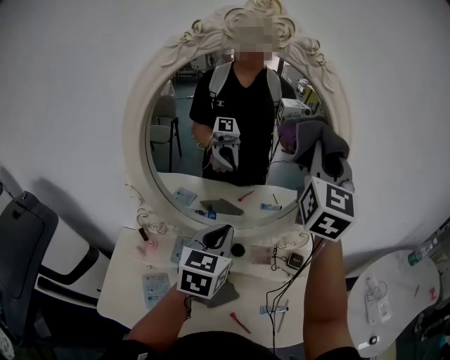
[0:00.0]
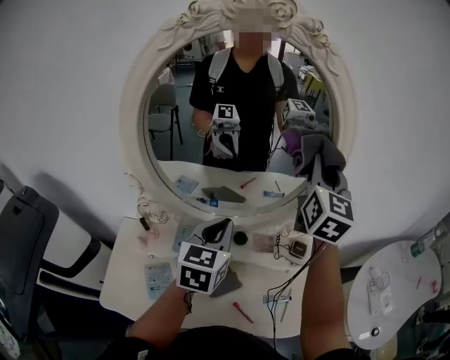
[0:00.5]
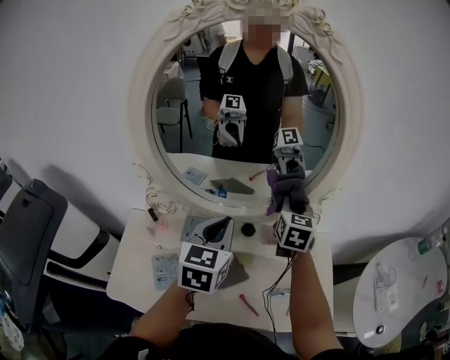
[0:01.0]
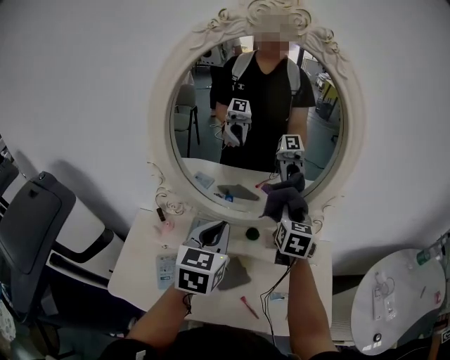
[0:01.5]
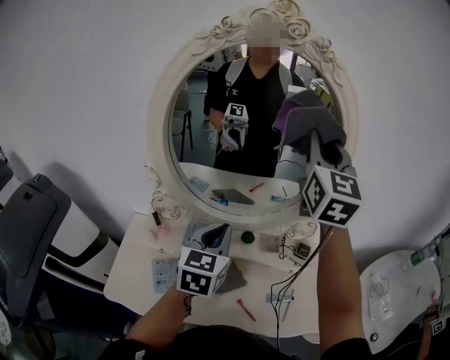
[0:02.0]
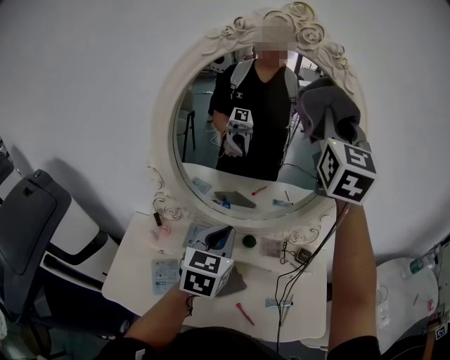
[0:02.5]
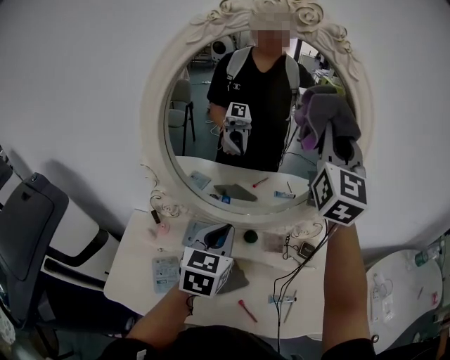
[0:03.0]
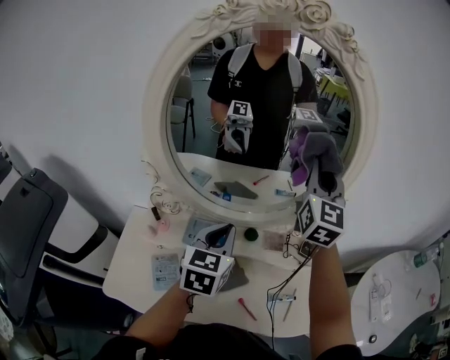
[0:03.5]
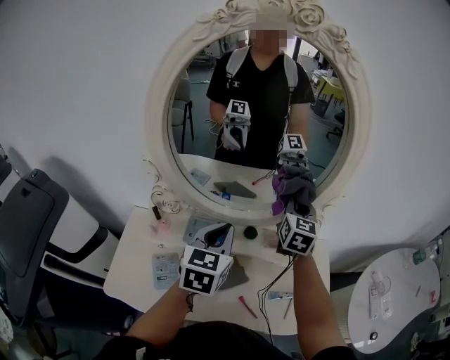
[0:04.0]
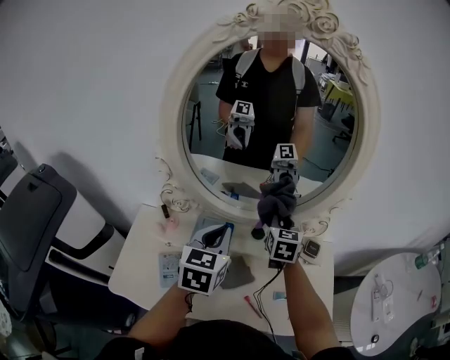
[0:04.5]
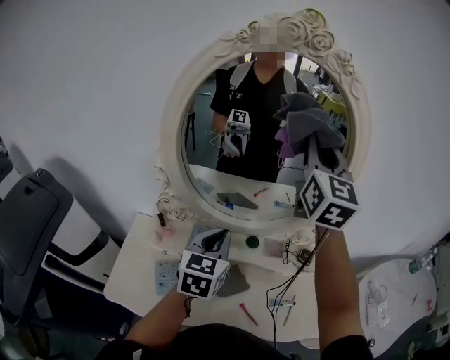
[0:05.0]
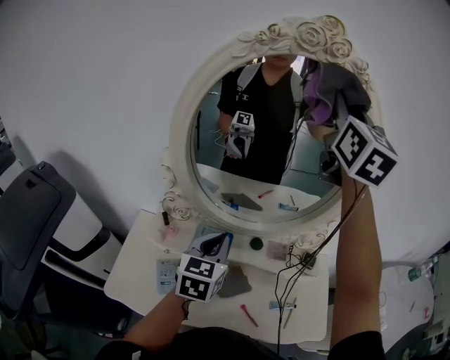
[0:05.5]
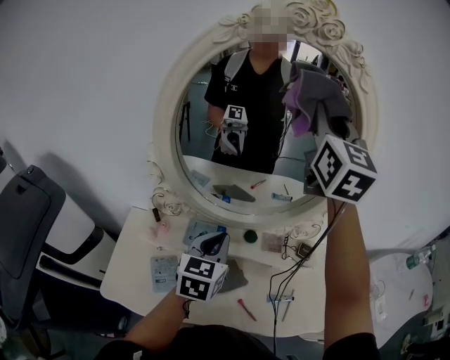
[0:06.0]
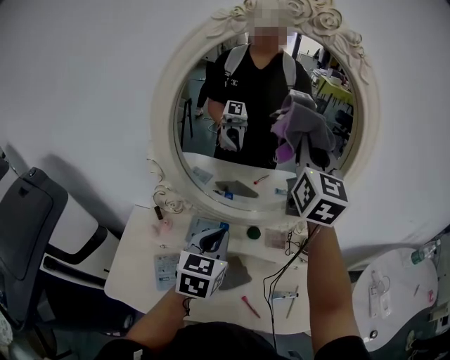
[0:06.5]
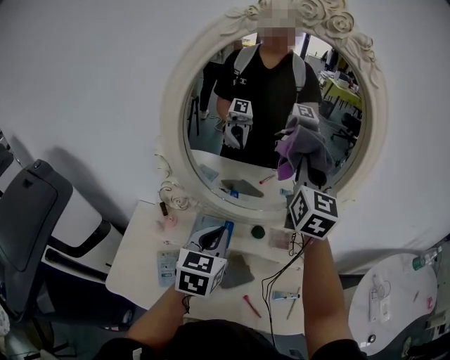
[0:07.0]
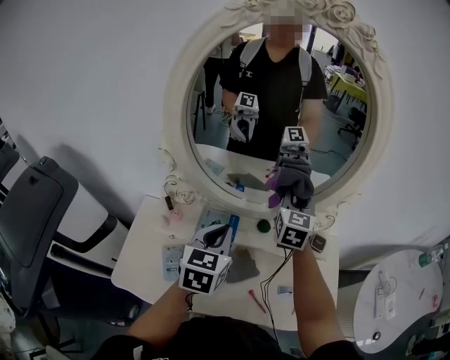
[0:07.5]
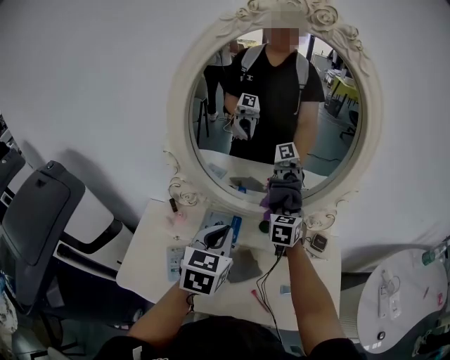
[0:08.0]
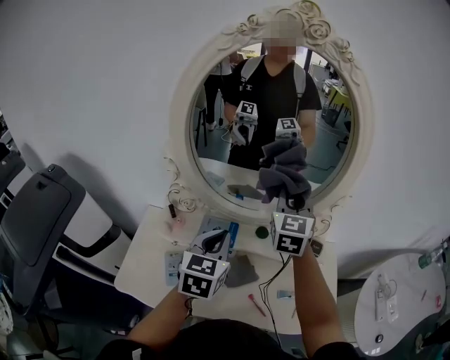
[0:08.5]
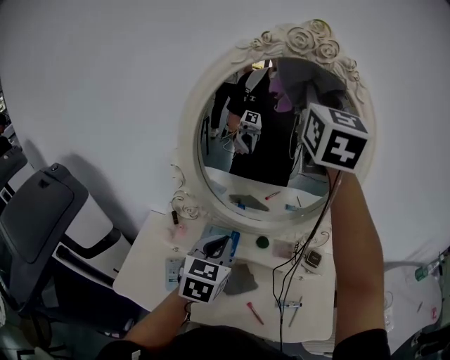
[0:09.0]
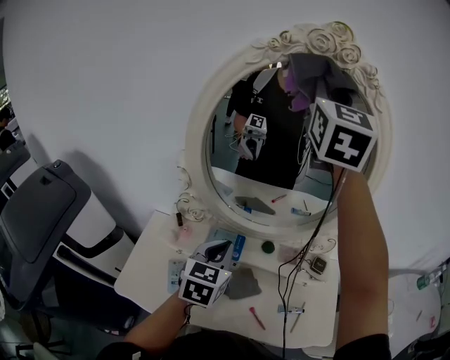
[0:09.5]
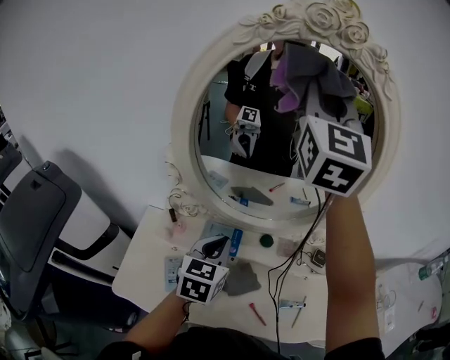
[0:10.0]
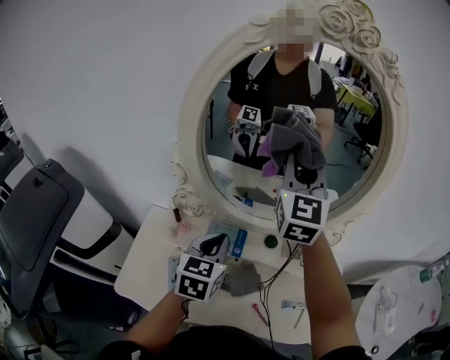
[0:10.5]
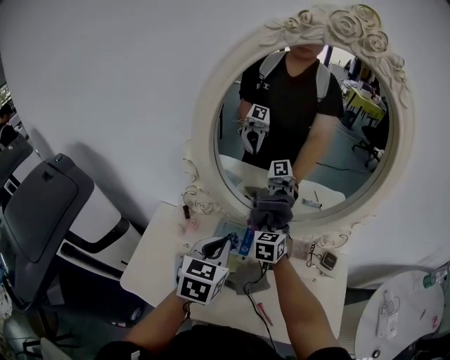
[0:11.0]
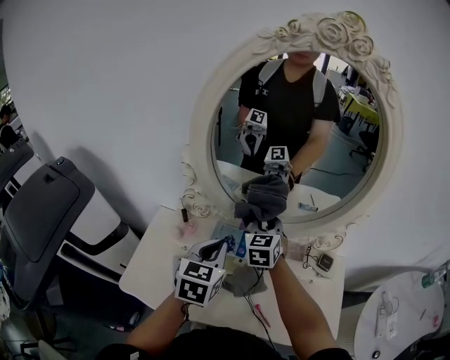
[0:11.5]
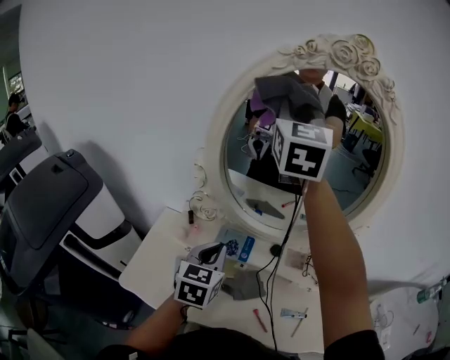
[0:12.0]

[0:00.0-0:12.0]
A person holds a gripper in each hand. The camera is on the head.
0:00.0 to 0:02.0: The left gripper shifts approximately 5 cm backward. The right gripper reaches approximately 30 cm downward, then returns.
0:02.0 to 0:04.0: The right gripper heads downward, covering some 25 cm, and turns by roughly 20 degrees.
0:04.0 to 0:06.0: The right gripper moves up and down over about 50 cm, changing direction 2 times, and turns by about 30 degrees.
0:06.0 to 0:08.0: The right gripper shifts approximately 40 cm downward, and tilts its fingers approximately 40 degrees downward.
0:08.0 to 0:10.0: The right gripper is displaced upward by some 50 cm, and angles its fingers upward, by approximately 50 degrees.
0:10.0 to 0:12.0: The left gripper moves some 5 cm, while the right gripper shifts about 10 cm to the left, and reaches approximately 50 cm downward, then returns.

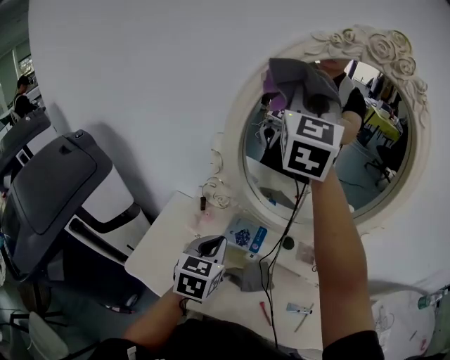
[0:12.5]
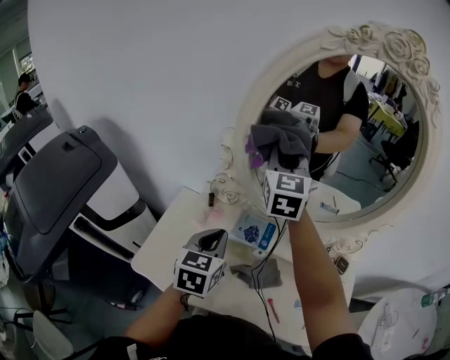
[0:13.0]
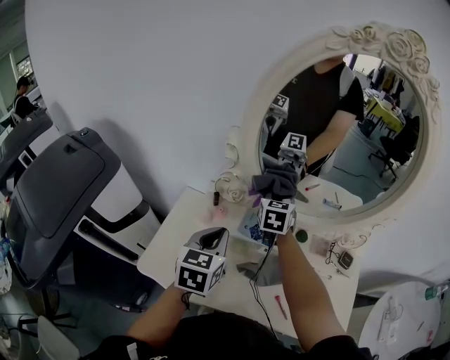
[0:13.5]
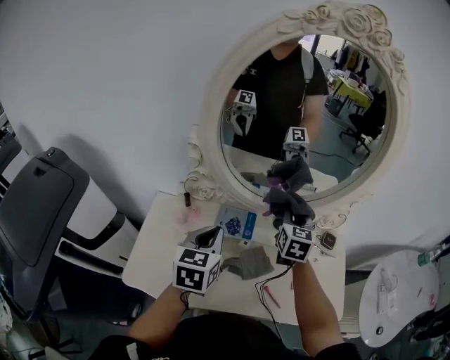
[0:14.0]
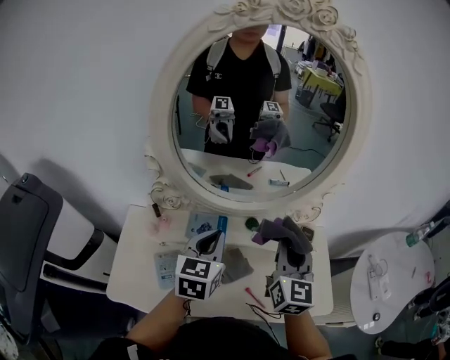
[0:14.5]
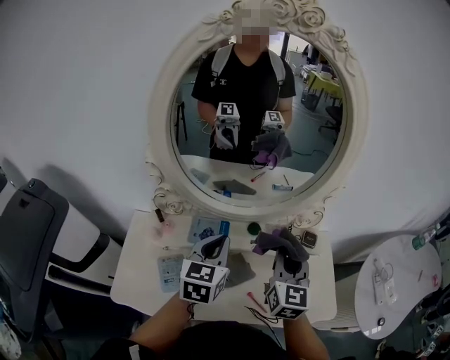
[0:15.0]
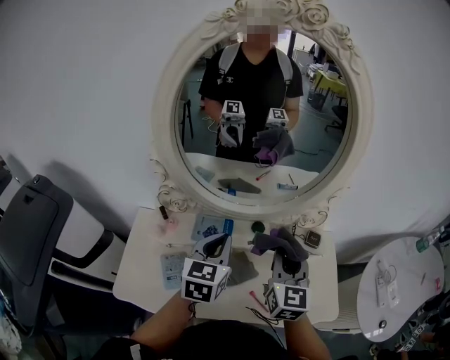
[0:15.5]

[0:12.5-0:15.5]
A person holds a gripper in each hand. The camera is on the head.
0:12.5 to 0:14.0: The right gripper heads downward and to the right, covering some 40 cm, and tilts its fingers roughly 40 degrees downward.
0:14.0 to 0:15.5: The left gripper is displaced to the right by approximately 10 cm. Meanwhile the right gripper moves backward, to the right and upward, some 15 cm.

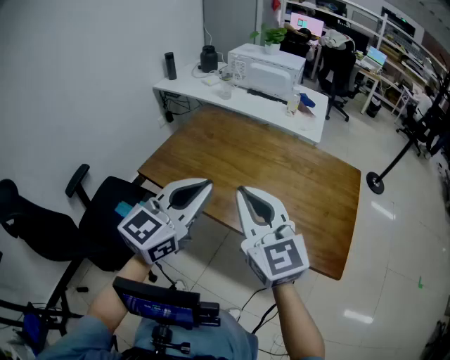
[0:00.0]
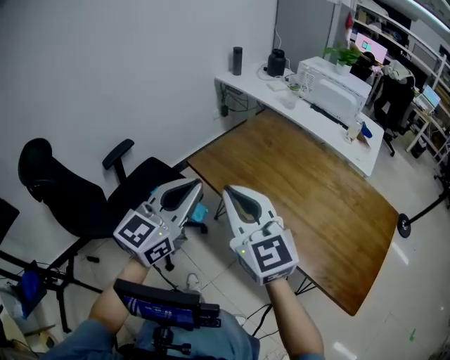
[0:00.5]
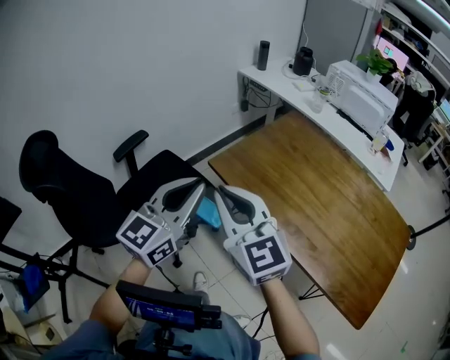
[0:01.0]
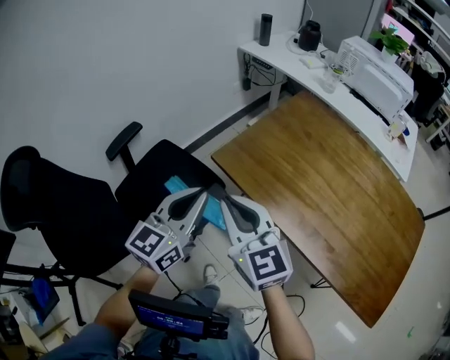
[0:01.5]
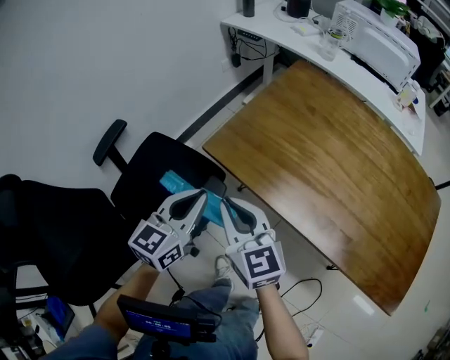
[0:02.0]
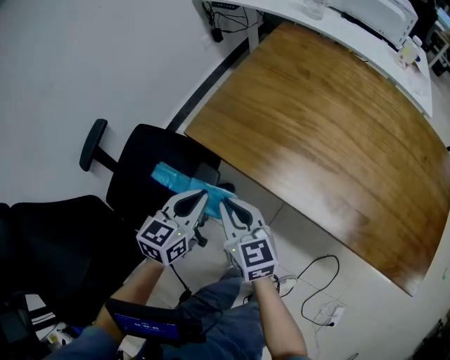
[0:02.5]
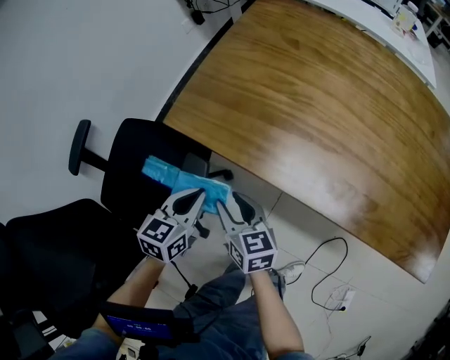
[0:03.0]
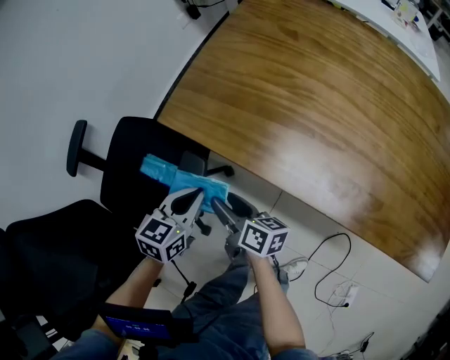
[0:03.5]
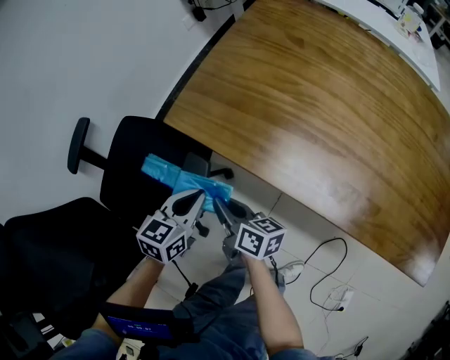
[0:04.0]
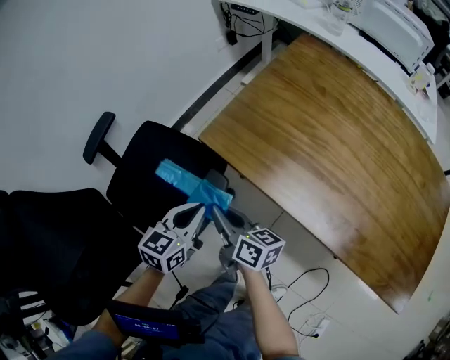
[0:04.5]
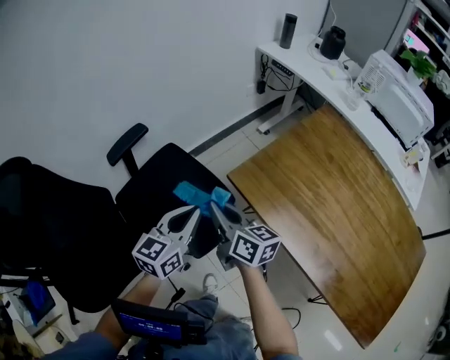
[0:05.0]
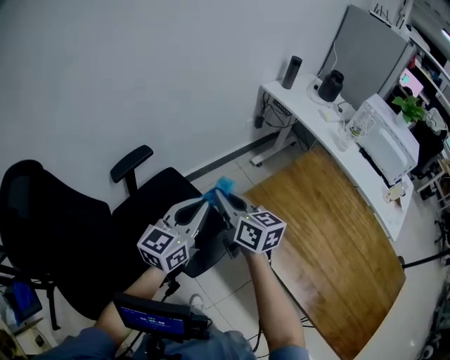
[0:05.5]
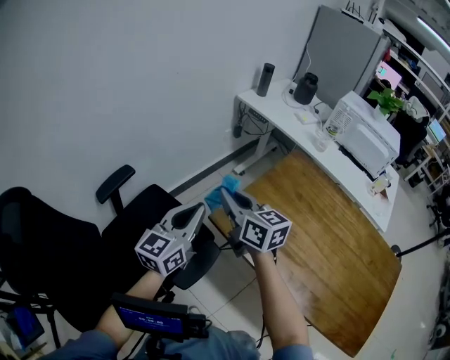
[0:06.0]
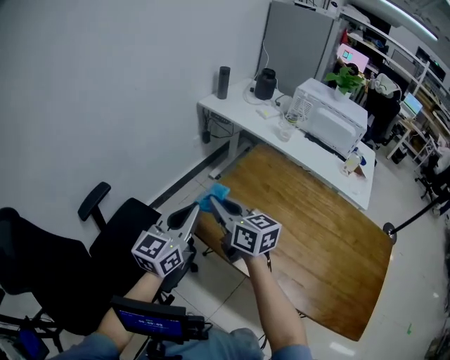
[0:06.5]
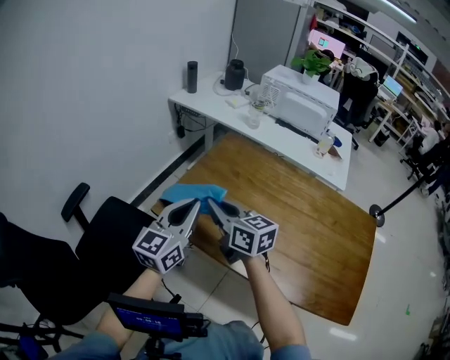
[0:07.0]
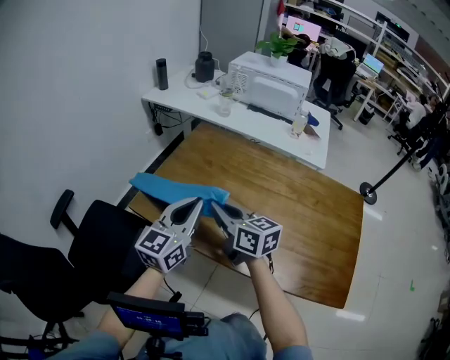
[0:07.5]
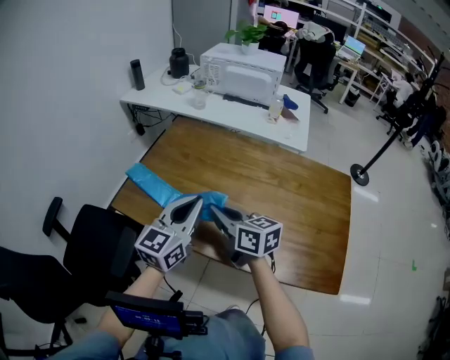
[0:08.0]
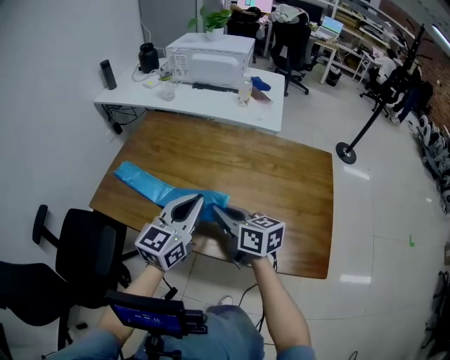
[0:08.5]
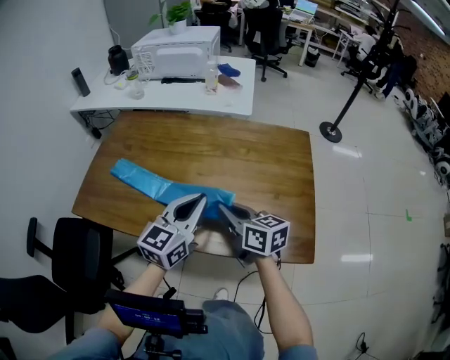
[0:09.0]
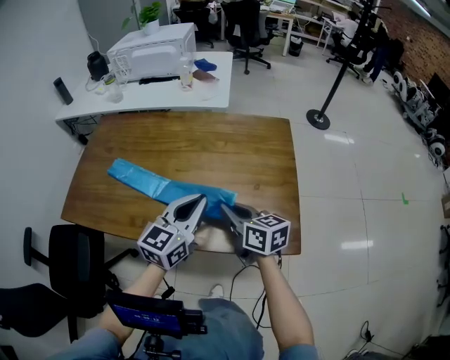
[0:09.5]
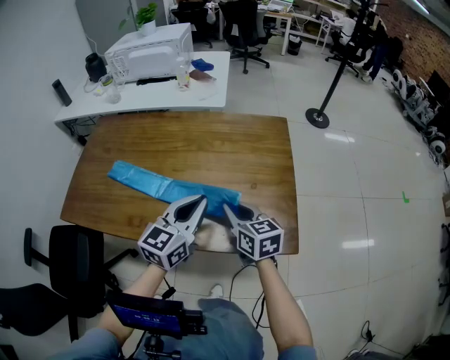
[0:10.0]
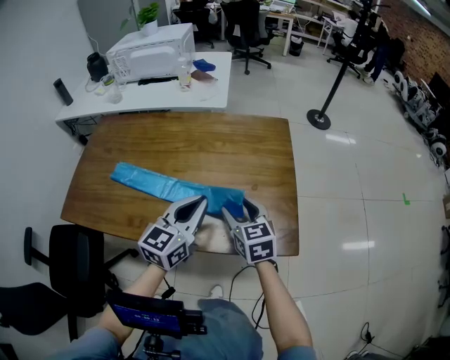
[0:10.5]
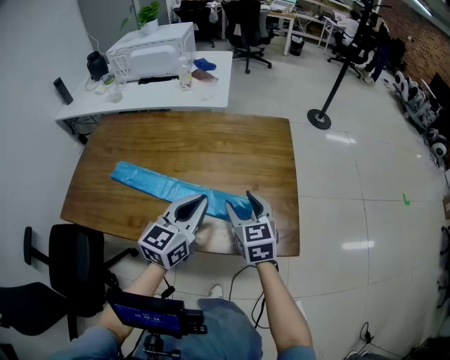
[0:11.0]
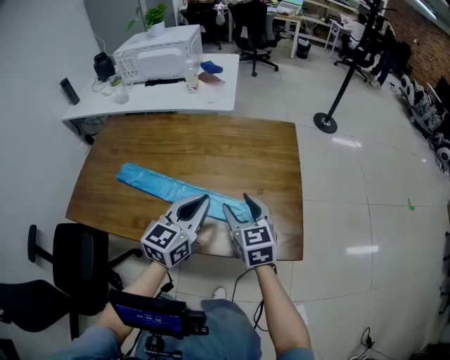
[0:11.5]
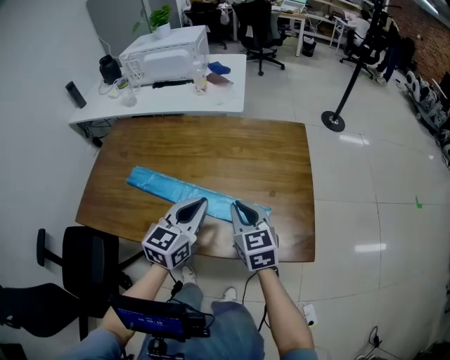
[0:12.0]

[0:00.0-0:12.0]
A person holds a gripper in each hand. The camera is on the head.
0:00.0 to 0:02.0: Both grippers travel together to the left, downward and forward, approximately 40 cm. The left gripper changes its angle by approximately 30 degrees, while the right gripper changes its angle by roughly 20 degrees.
0:02.0 to 0:04.0: Both grippers move downward, approximately 20 cm. The left gripper rotates roughly 20 degrees. Meanwhile the right gripper twists some 50 degrees clockwise, seen from behind, and opens, then closes once more.
0:04.0 to 0:06.0: The grippers both shift upward and forward by some 35 cm. The right gripper rotates around the line of its fingers by some 40 degrees, counterclockwise from behind. Meanwhile the left gripper tips its fingers upward by approximately 30 degrees.
0:06.0 to 0:08.0: The pair of grippers is taken to the right, approximately 40 cm. The right gripper swivels approximately 20 degrees. Meanwhile the left gripper turns by about 30 degrees.
0:08.0 to 0:10.0: Both grippers move to the right, some 30 cm. The left gripper rotates about 20 degrees. The right gripper changes its angle by about 30 degrees.
0:10.0 to 0:12.0: The right gripper opens, then closes once more; the left gripper heads to the left, covering roughly 5 cm.
